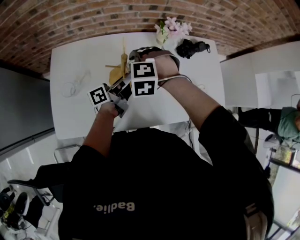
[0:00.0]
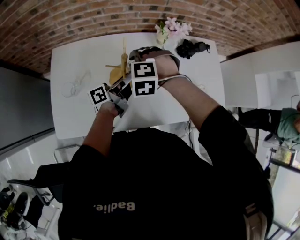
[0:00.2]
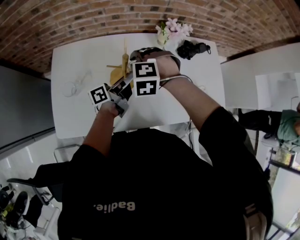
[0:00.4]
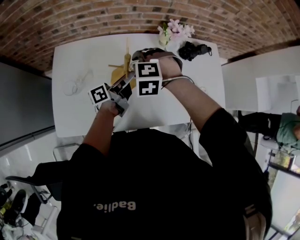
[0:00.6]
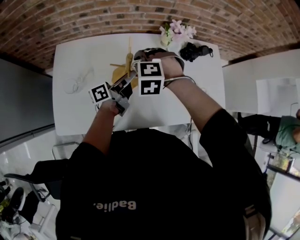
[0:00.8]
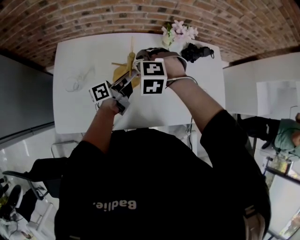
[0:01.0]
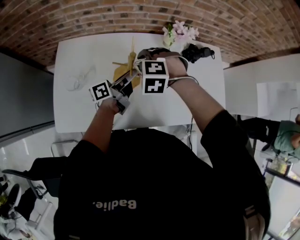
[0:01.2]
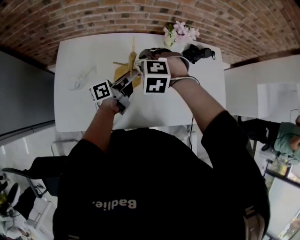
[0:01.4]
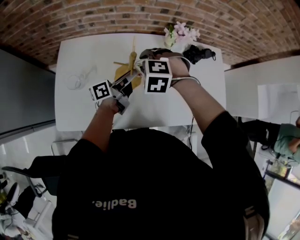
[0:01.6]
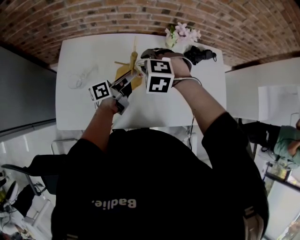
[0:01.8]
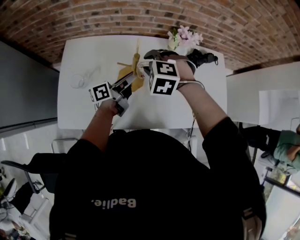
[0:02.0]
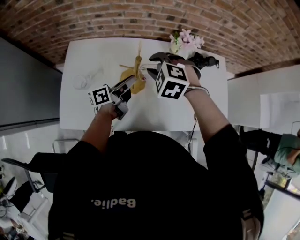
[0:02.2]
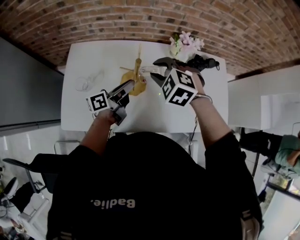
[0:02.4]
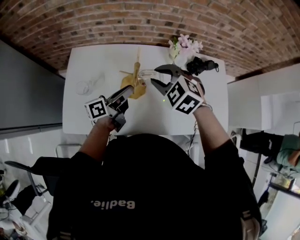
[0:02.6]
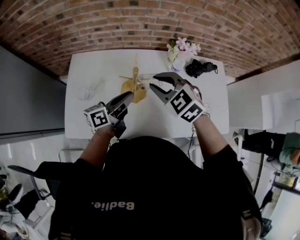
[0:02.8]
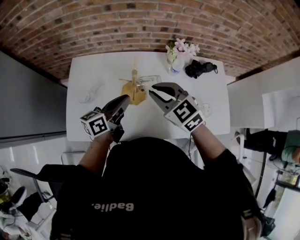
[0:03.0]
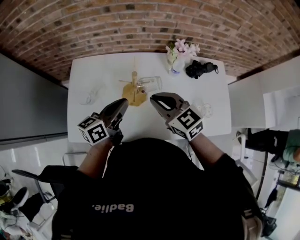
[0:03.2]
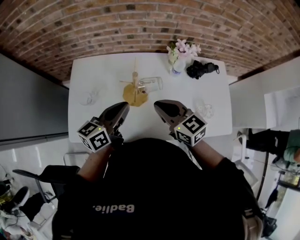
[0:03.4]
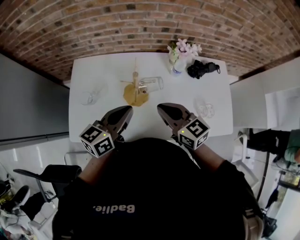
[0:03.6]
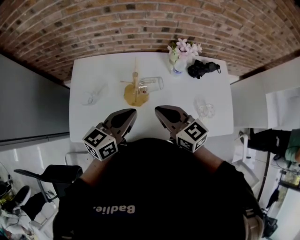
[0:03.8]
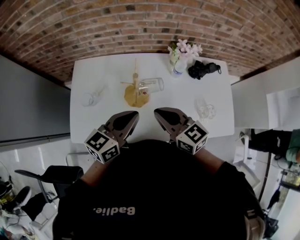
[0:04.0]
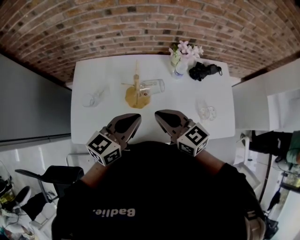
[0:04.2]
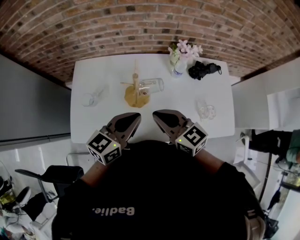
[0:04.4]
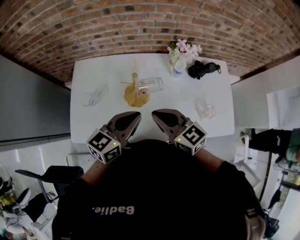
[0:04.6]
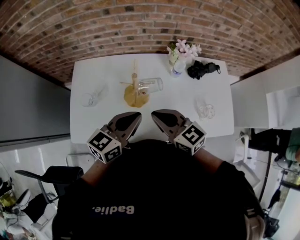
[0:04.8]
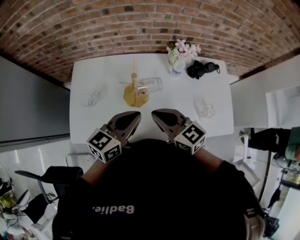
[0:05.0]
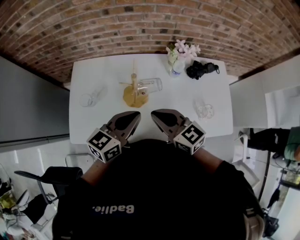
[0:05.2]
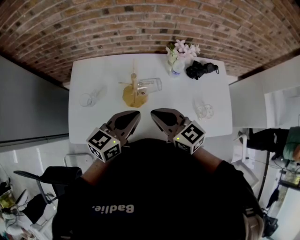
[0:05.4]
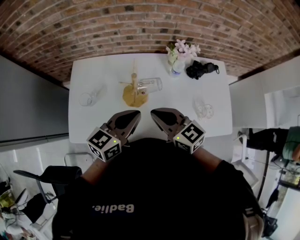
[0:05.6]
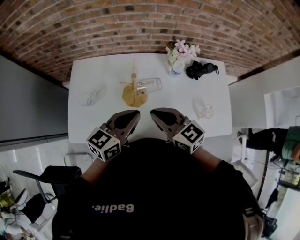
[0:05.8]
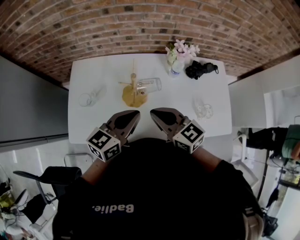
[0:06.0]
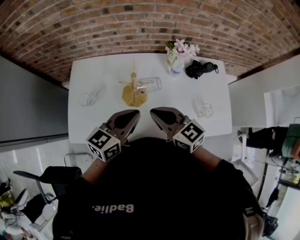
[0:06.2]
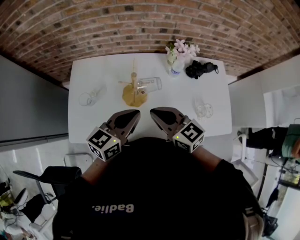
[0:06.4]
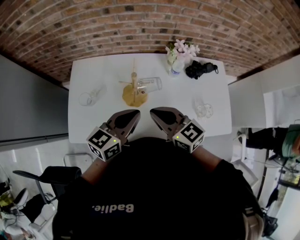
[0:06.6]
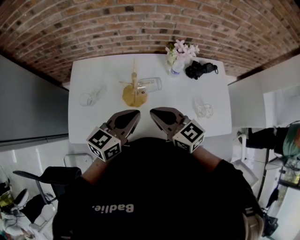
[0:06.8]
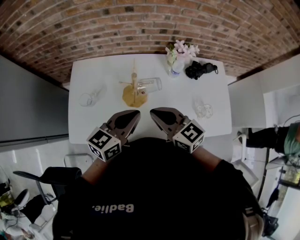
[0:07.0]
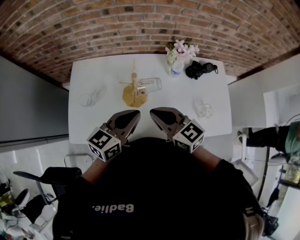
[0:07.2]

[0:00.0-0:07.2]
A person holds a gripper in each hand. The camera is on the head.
0:00.0 to 0:01.4: There are only small adjustments of the grippers.
0:01.4 to 0:02.8: The left gripper heads upward and backward, covering approximately 10 cm, and rotates some 20 degrees. The right gripper heads upward, covering roughly 10 cm, and changes its angle by roughly 40 degrees.
0:02.8 to 0:04.4: The left gripper shifts approximately 10 cm upward and backward, and swivels approximately 30 degrees; the right gripper travels backward by about 10 cm, and rotates some 40 degrees.
0:04.4 to 0:07.2: Both grippers stay about where they are.

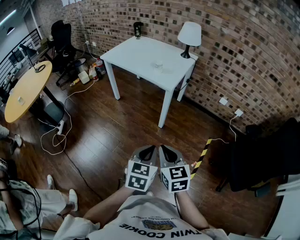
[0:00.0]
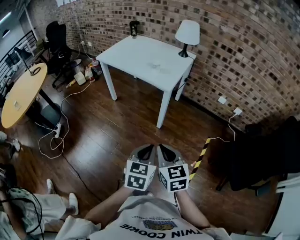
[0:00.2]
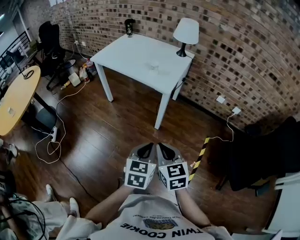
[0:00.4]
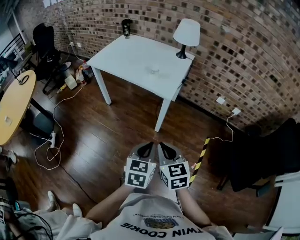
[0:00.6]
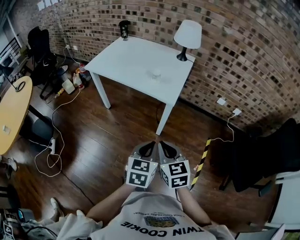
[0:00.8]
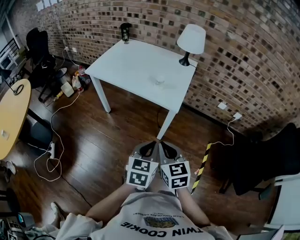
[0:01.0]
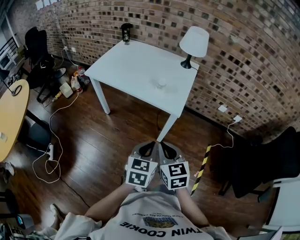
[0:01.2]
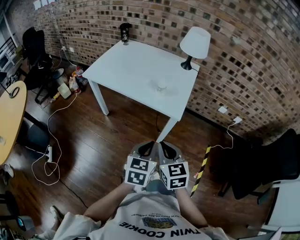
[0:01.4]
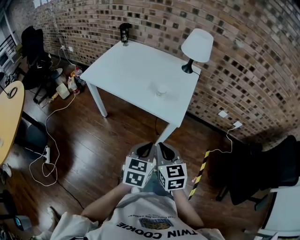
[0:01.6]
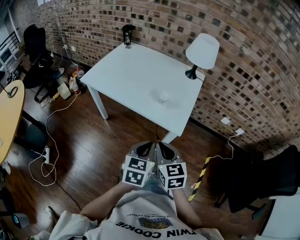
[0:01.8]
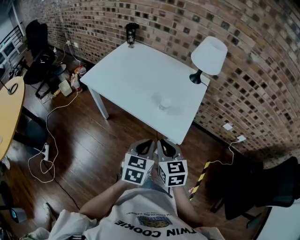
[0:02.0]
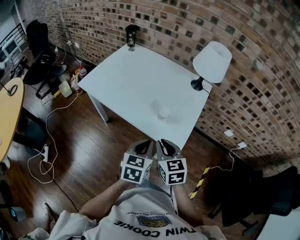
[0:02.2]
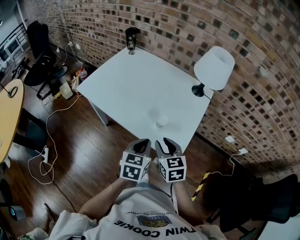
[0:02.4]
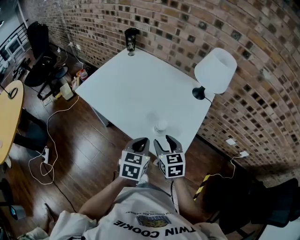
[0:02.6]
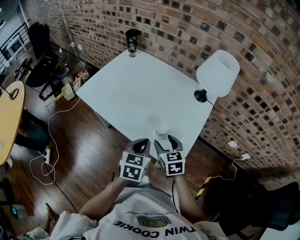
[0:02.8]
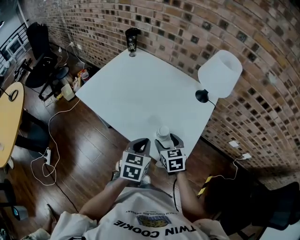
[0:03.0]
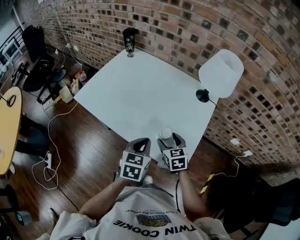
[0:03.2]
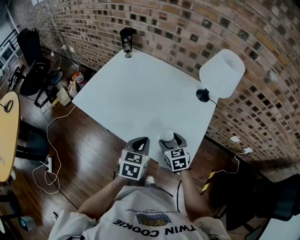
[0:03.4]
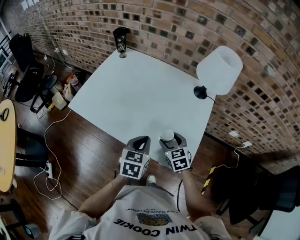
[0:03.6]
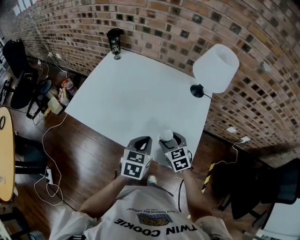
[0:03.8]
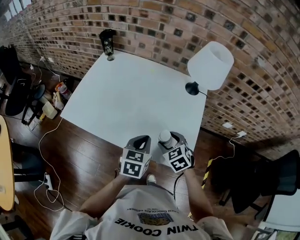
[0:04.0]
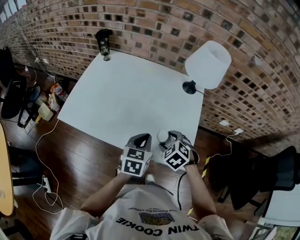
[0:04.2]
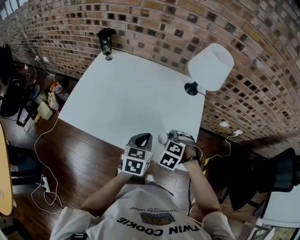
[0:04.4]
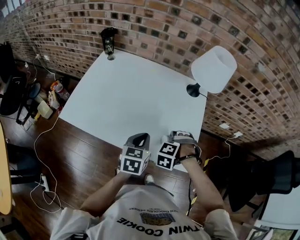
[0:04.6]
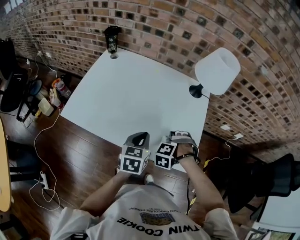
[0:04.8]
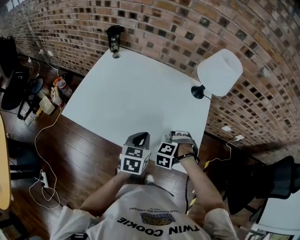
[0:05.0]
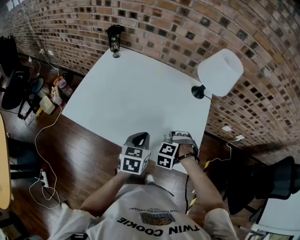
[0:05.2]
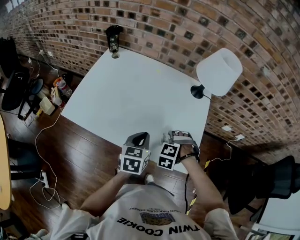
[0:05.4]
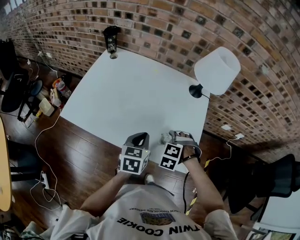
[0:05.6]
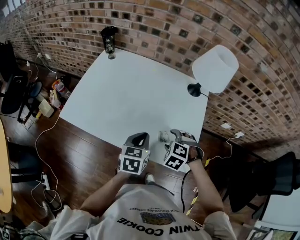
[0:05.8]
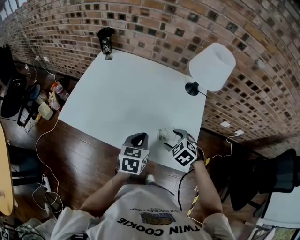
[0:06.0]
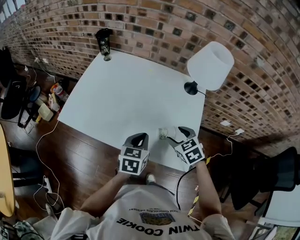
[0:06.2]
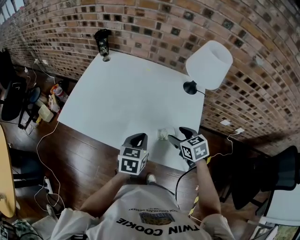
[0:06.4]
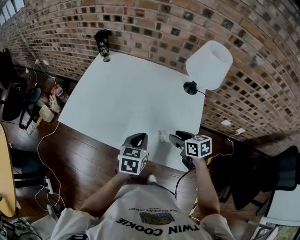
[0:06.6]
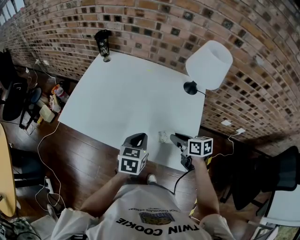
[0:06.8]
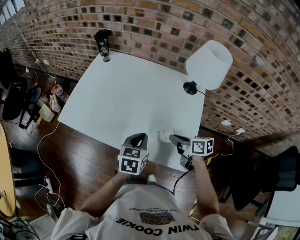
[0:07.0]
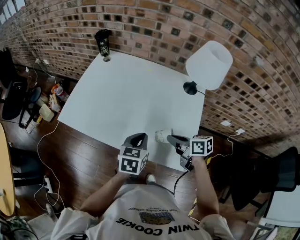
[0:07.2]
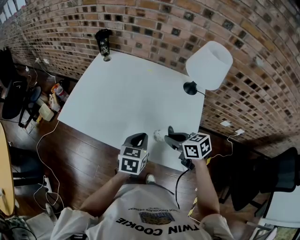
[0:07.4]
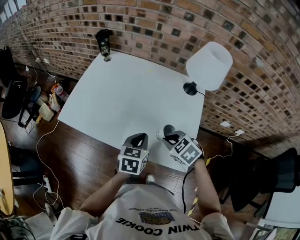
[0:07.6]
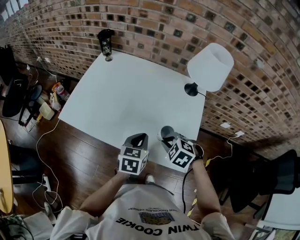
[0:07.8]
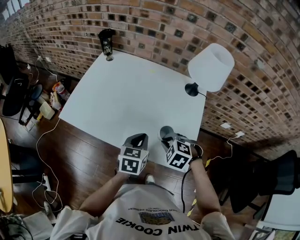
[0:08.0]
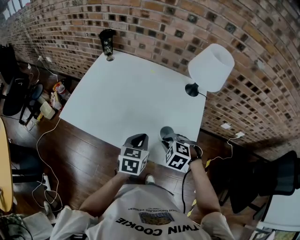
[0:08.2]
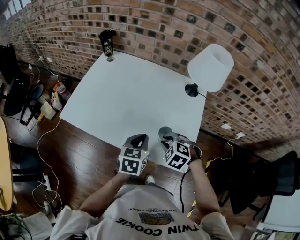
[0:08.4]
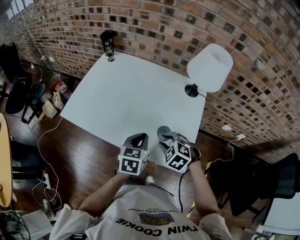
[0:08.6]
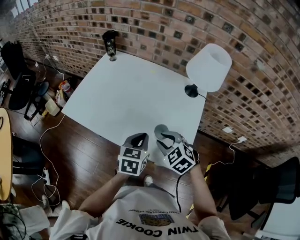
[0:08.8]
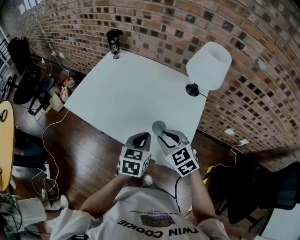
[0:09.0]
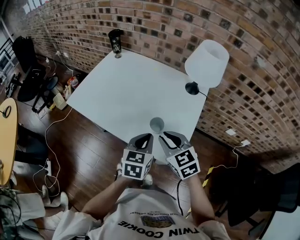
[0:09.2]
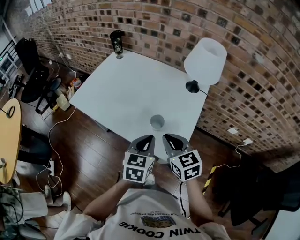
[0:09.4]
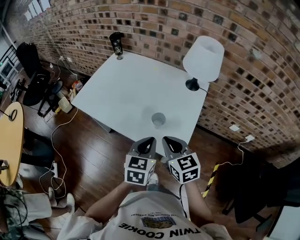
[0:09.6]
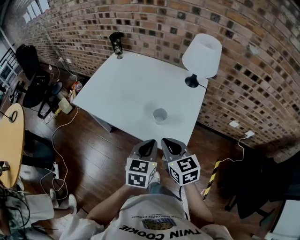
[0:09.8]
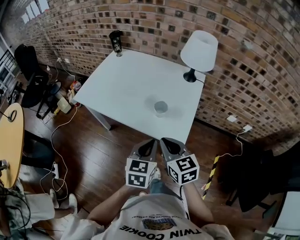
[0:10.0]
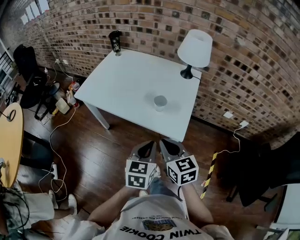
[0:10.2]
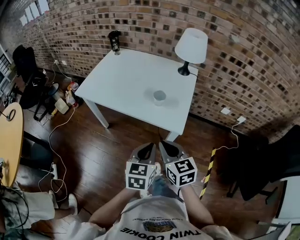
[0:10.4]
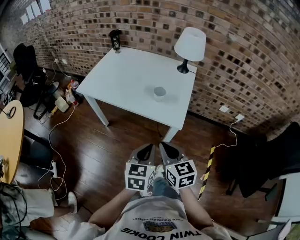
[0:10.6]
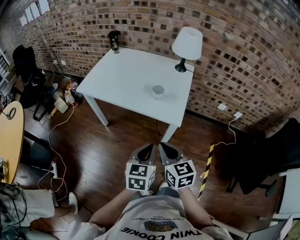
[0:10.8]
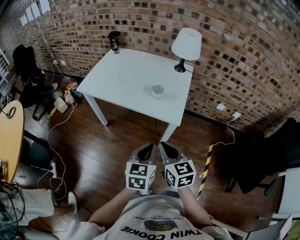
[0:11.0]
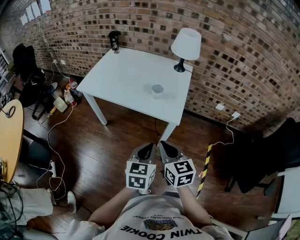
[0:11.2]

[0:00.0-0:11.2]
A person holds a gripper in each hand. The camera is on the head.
0:00.0 to 0:01.6: Both grippers move forward, approximately 35 cm.
0:01.6 to 0:03.2: The grippers both shift forward by roughly 30 cm. The right gripper opens.
0:03.2 to 0:04.8: The left gripper ends up approximately 10 cm from where it was. Meanwhile the right gripper turns by some 90 degrees.
0:04.8 to 0:06.4: The right gripper moves upward, approximately 5 cm, and twists about 70 degrees clockwise, seen from behind.
0:06.4 to 0:08.0: The right gripper shifts some 5 cm to the left, twists roughly 50 degrees counterclockwise, seen from behind, and closes.
0:08.0 to 0:09.6: The right gripper goes approximately 15 cm upward and backward, and angles its fingers upward, by about 40 degrees. The left gripper shifts approximately 15 cm backward, to the right and upward.
0:09.6 to 0:11.2: The grippers both shift backward by roughly 25 cm.

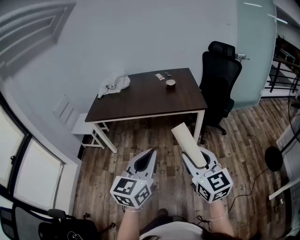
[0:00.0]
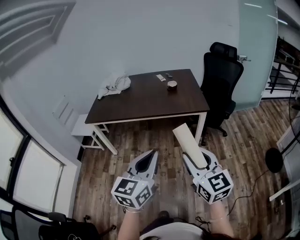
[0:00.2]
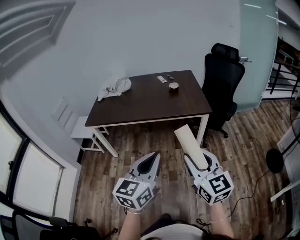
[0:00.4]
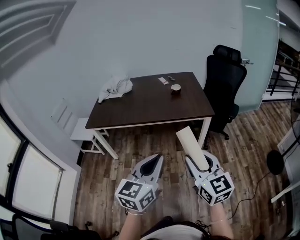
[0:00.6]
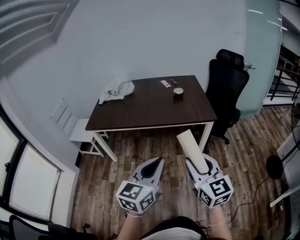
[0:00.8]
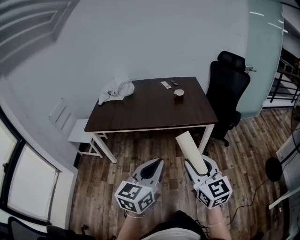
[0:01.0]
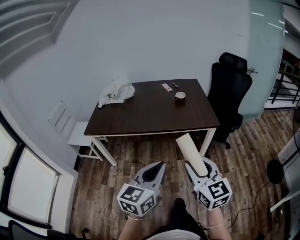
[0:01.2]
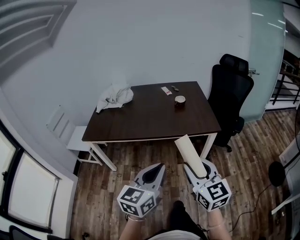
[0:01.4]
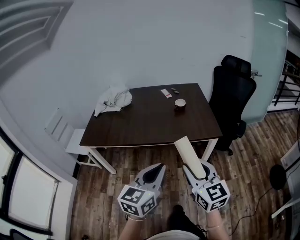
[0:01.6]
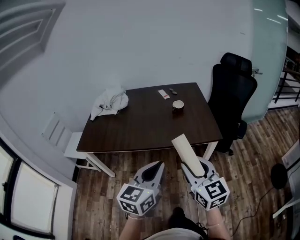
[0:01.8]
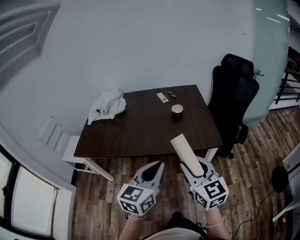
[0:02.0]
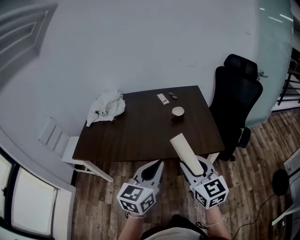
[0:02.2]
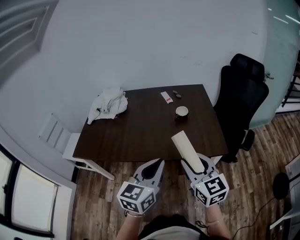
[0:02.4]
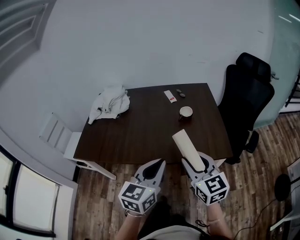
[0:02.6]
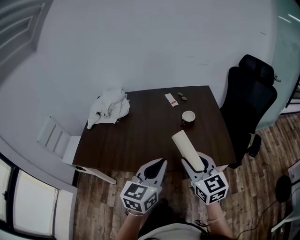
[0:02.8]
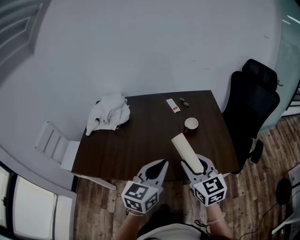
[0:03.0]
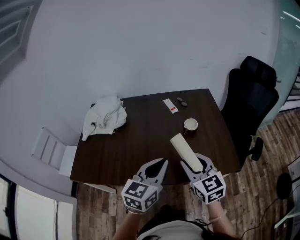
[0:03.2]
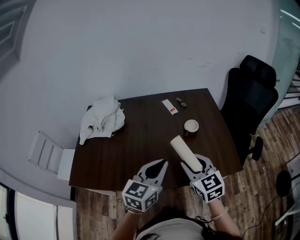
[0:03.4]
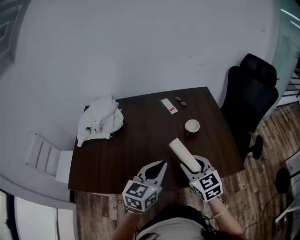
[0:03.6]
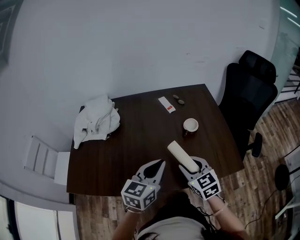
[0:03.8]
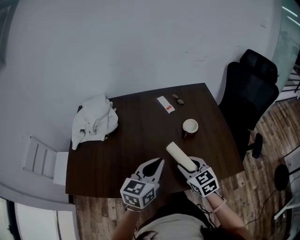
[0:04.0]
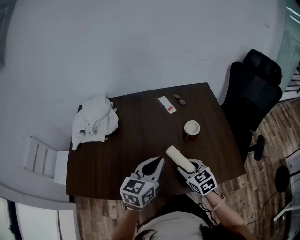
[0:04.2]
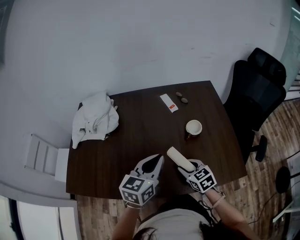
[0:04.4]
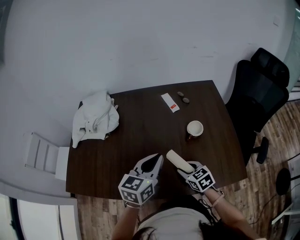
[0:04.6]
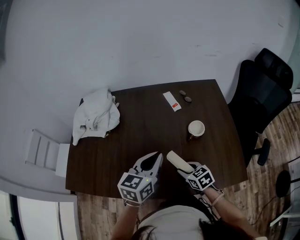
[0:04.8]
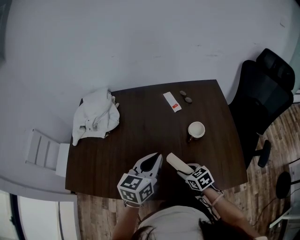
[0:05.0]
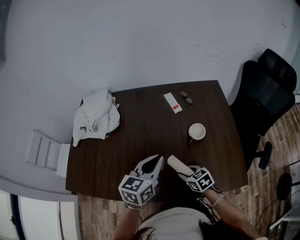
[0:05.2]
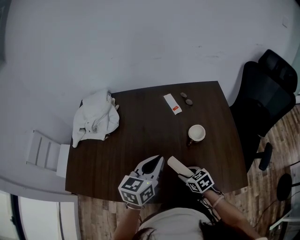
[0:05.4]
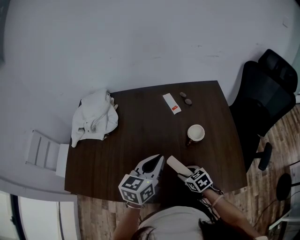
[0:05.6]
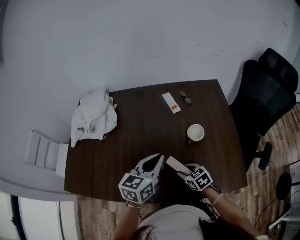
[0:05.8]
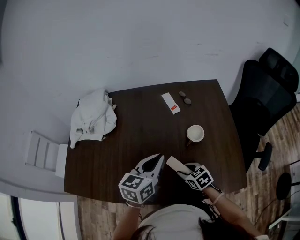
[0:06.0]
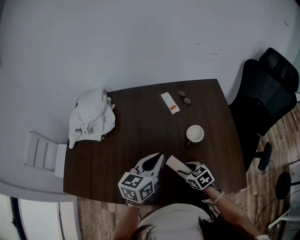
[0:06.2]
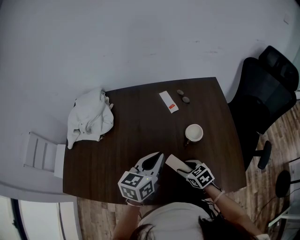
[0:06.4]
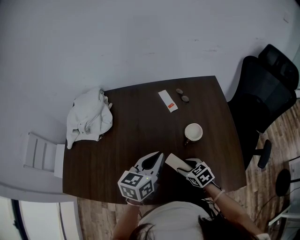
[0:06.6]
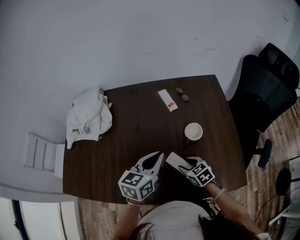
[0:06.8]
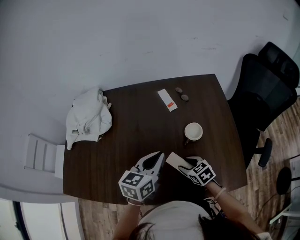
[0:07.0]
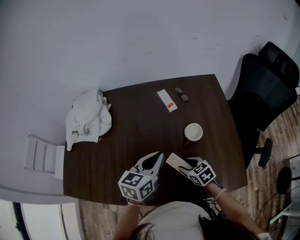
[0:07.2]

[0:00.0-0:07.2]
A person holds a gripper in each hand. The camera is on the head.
0:00.0 to 0:01.4: The two grippers go some 20 cm forward and to the left.
0:01.4 to 0:02.8: The grippers both shift forward by approximately 40 cm.
0:02.8 to 0:04.4: The left gripper travels forward by approximately 25 cm, while the right gripper travels forward and downward by roughly 30 cm, and rotates about 30 degrees.
0:04.4 to 0:05.8: The right gripper heads downward, covering approximately 10 cm. Meanwhile the left gripper shifts some 5 cm forward.
0:05.8 to 0:07.2: The grippers stay close to where they were, moving slightly.
